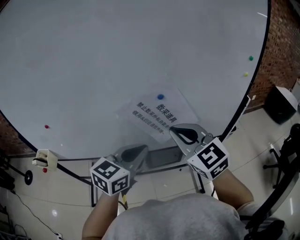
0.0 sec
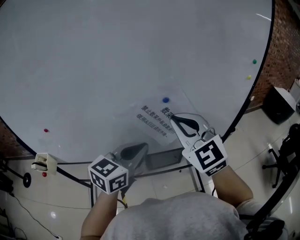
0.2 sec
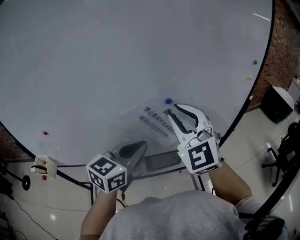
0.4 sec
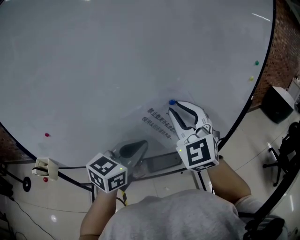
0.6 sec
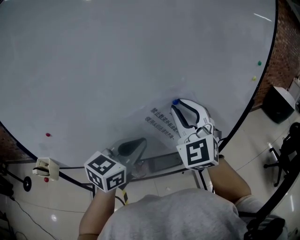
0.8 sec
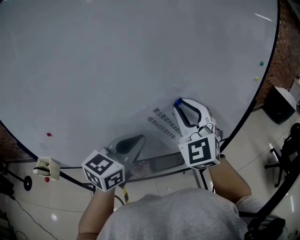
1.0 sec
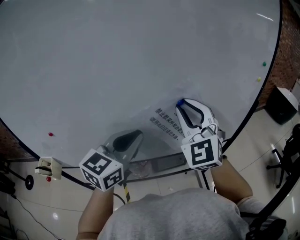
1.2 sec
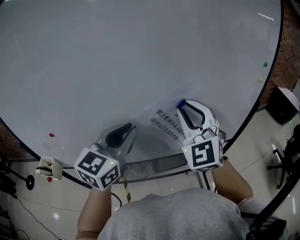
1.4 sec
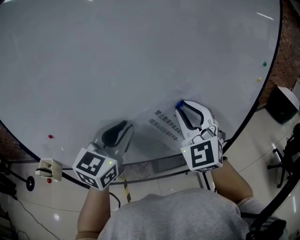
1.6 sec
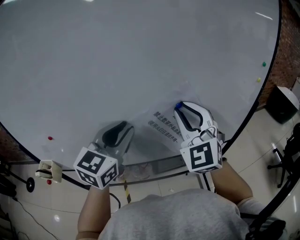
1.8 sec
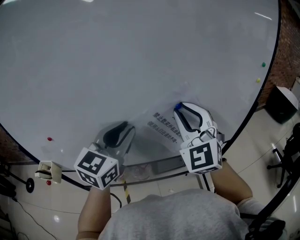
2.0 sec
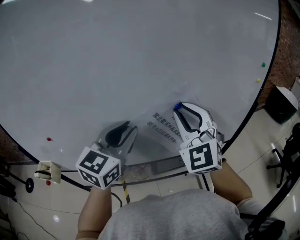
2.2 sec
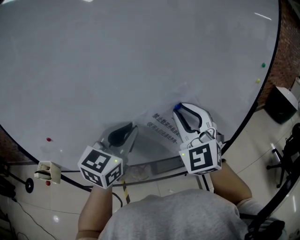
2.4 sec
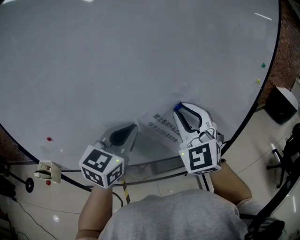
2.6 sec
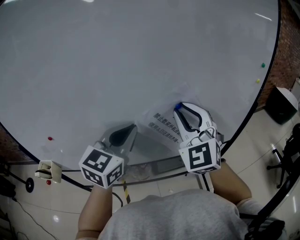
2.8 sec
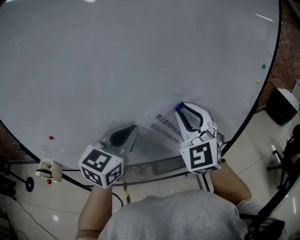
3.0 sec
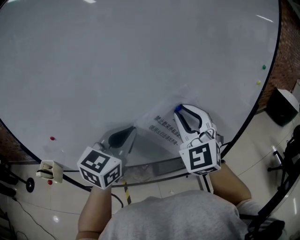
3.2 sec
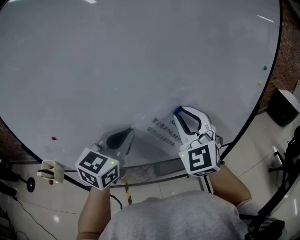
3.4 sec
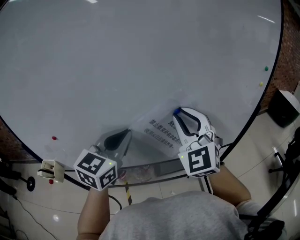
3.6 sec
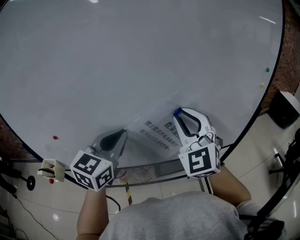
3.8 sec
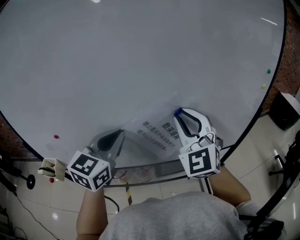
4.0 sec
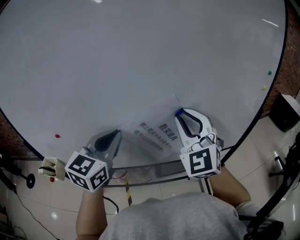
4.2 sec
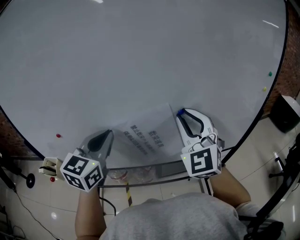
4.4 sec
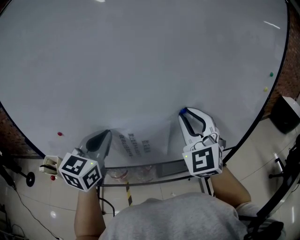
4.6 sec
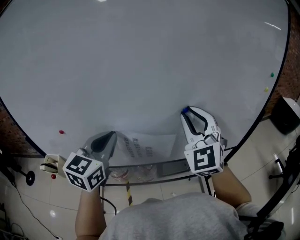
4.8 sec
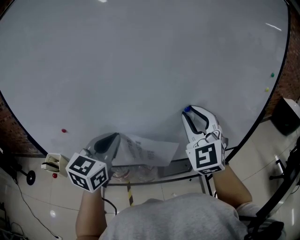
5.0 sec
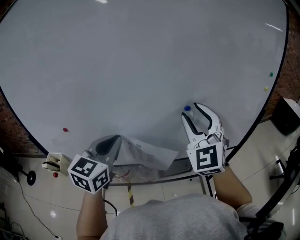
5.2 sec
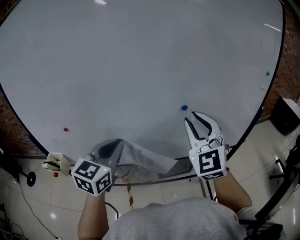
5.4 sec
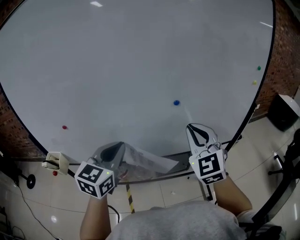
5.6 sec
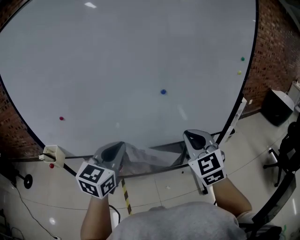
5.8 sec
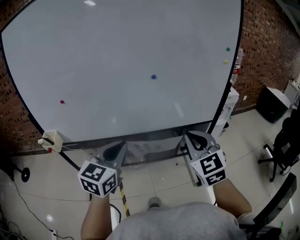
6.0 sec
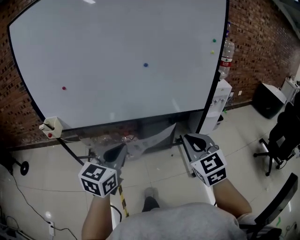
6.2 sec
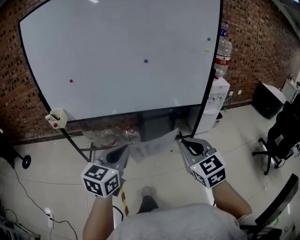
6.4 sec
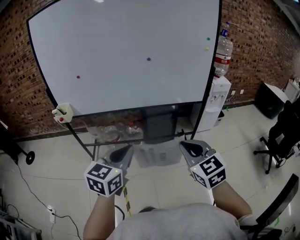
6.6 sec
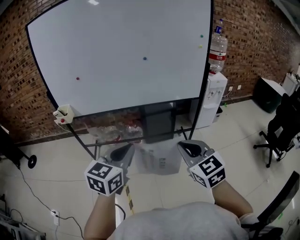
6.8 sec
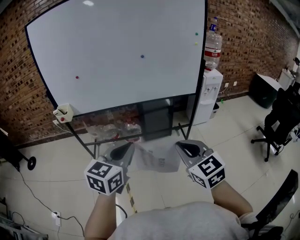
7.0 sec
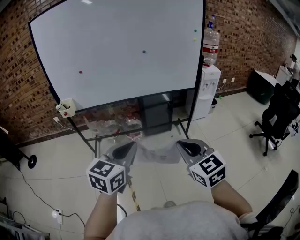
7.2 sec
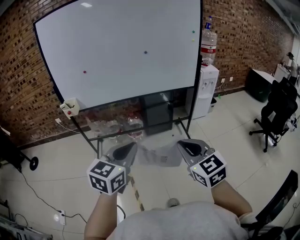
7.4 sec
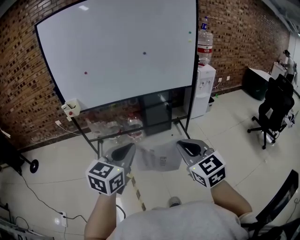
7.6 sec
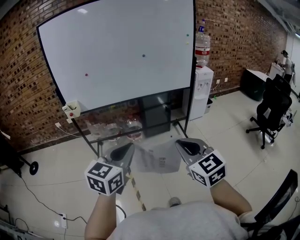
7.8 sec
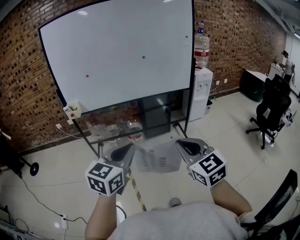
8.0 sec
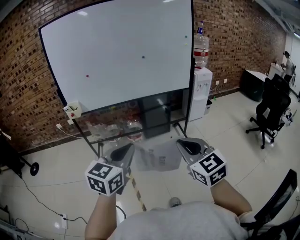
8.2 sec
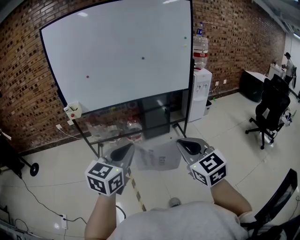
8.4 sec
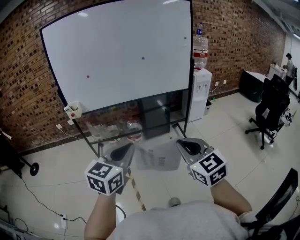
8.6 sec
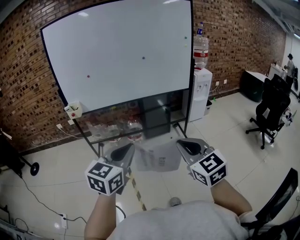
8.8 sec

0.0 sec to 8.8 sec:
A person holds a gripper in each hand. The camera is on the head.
0.0 sec to 1.4 sec: The left gripper is displaced to the left and upward by roughly 15 cm. Meanwhile the right gripper moves forward and upward, approximately 10 cm, and changes its angle by some 40 degrees.
1.4 sec to 3.0 sec: The grippers stay close to where they were, moving slightly.
3.0 sec to 4.4 sec: The left gripper moves to the left, about 10 cm.
4.4 sec to 5.8 sec: The right gripper shifts approximately 15 cm backward, downward and to the right, swivels roughly 20 degrees, and opens, then closes once more, while the left gripper is displaced backward and to the right by some 15 cm.
5.8 sec to 7.4 sec: Both grippers are carried backward, roughly 50 cm.
7.4 sec to 8.8 sec: The grippers both shift backward by approximately 5 cm.

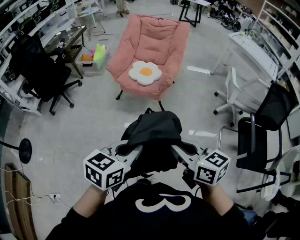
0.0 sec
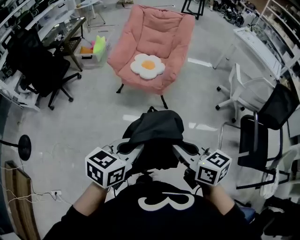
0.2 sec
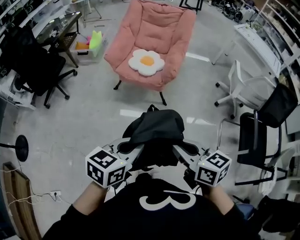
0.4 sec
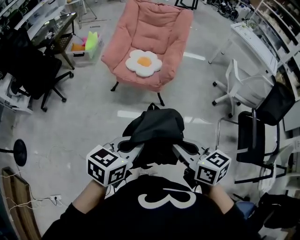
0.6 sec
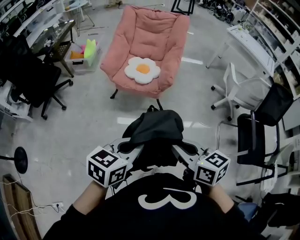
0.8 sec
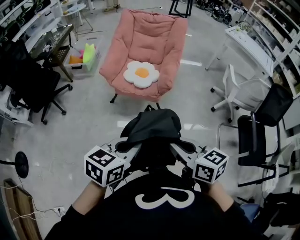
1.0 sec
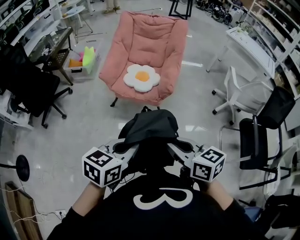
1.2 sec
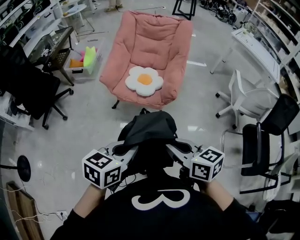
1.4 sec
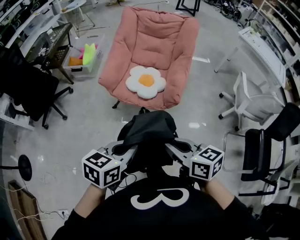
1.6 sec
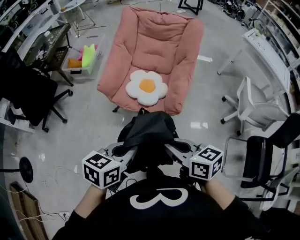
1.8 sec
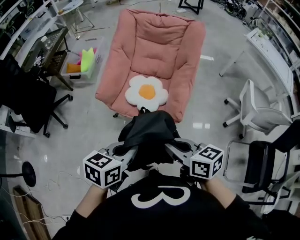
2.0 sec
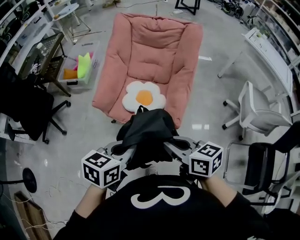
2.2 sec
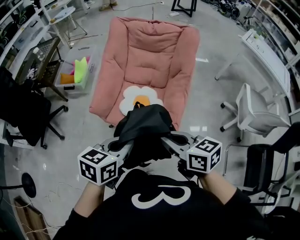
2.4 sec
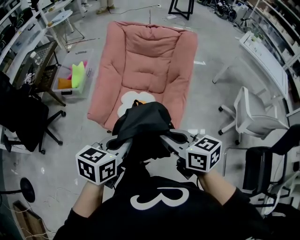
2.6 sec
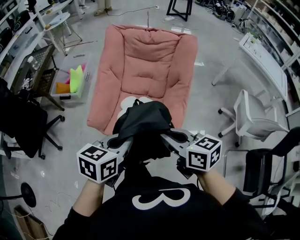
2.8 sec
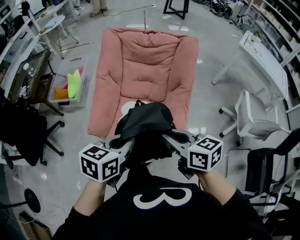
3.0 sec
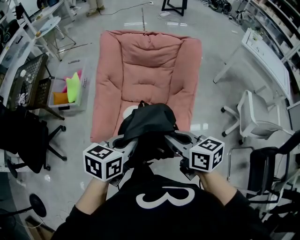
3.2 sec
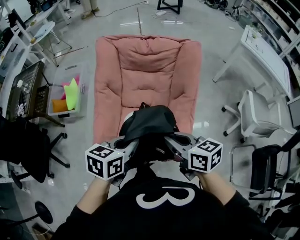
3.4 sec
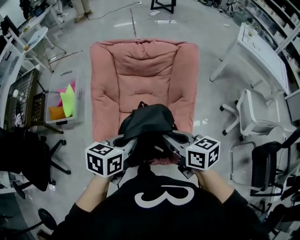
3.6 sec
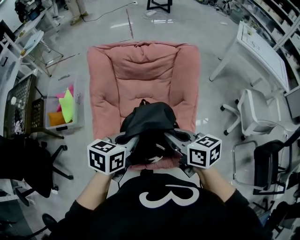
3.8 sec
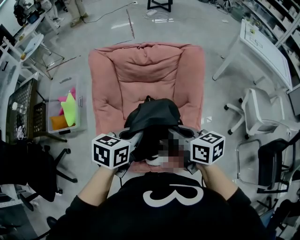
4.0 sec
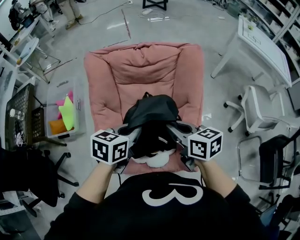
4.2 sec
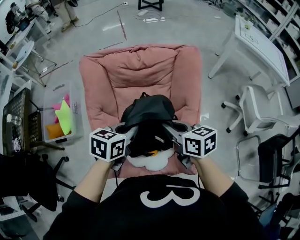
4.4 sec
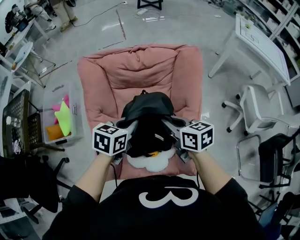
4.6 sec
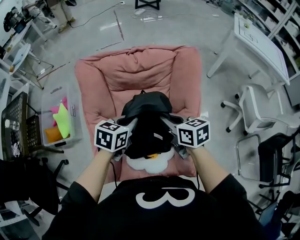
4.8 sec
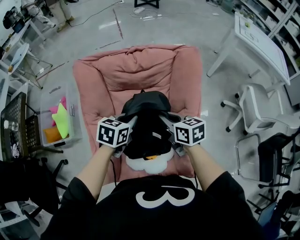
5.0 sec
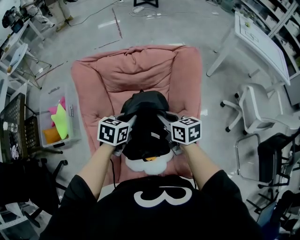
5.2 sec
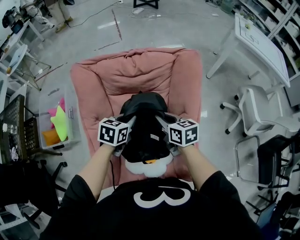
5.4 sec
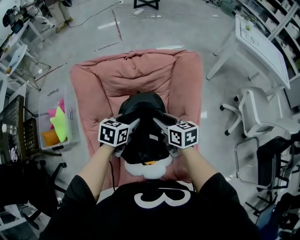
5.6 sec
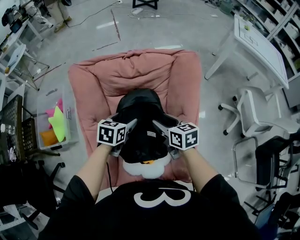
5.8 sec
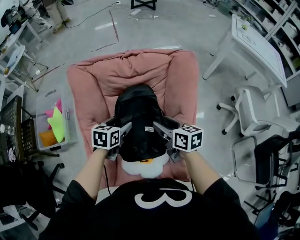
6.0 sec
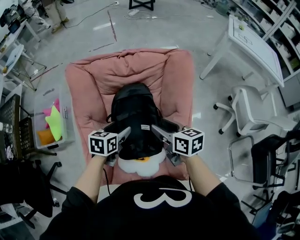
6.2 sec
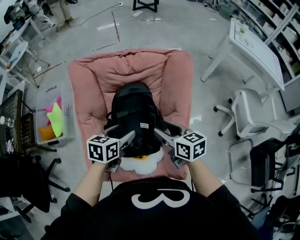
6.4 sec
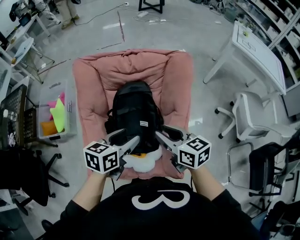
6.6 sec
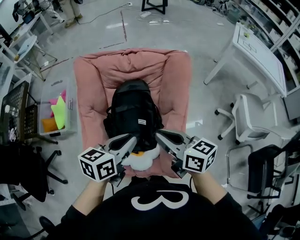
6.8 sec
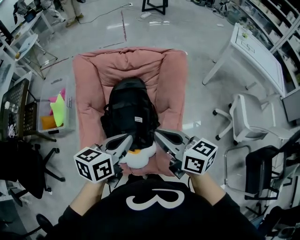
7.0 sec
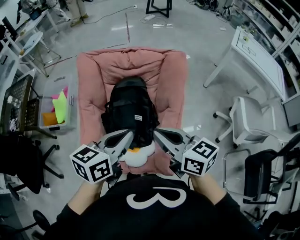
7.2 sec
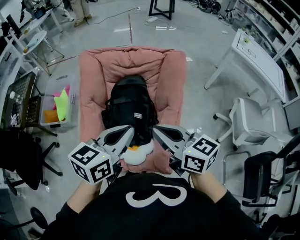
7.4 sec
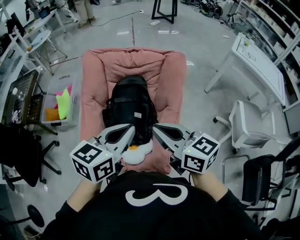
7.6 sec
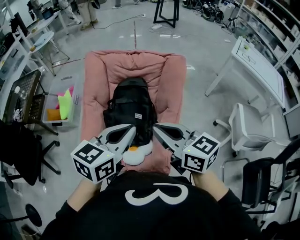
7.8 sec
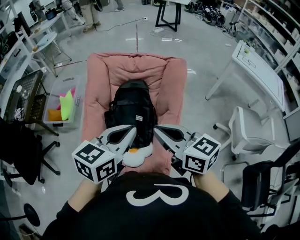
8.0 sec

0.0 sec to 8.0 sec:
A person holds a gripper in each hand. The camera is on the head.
0.0 sec to 1.6 sec: Both grippers move forward, some 30 cm.
1.6 sec to 3.2 sec: Both grippers are carried forward, approximately 40 cm.
3.2 sec to 4.8 sec: The two grippers go approximately 30 cm forward.
4.8 sec to 6.4 sec: The right gripper opens its fingers, while the left gripper opens up.
6.4 sec to 8.0 sec: The right gripper is displaced upward and backward by some 25 cm, rotates approximately 30 degrees, and closes up; the left gripper heads upward, backward and to the right, covering about 30 cm, turns by approximately 20 degrees, and closes.

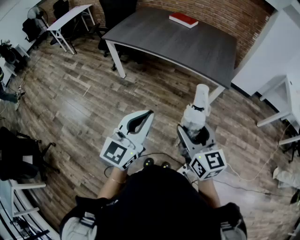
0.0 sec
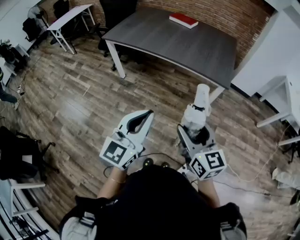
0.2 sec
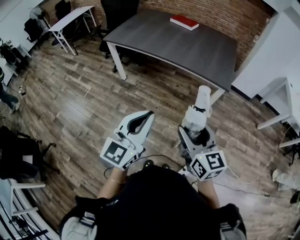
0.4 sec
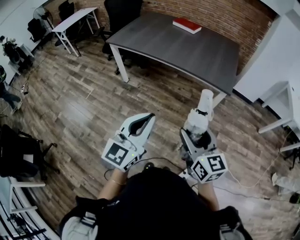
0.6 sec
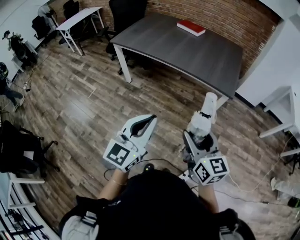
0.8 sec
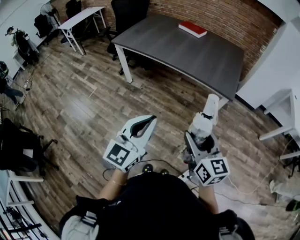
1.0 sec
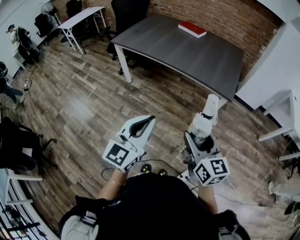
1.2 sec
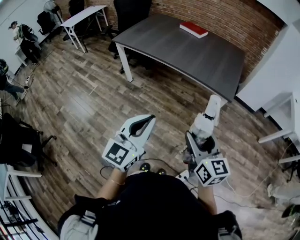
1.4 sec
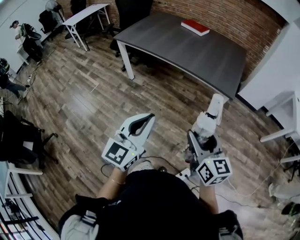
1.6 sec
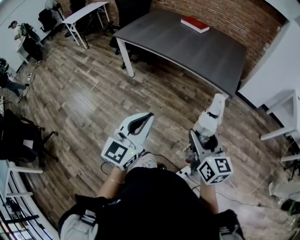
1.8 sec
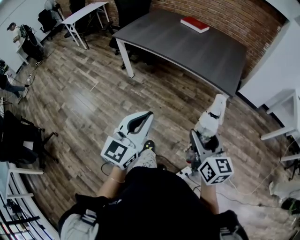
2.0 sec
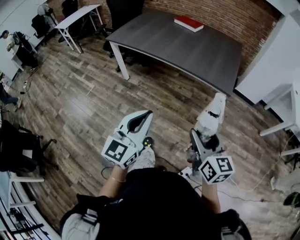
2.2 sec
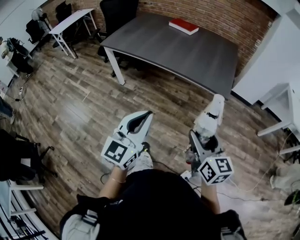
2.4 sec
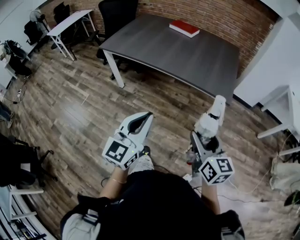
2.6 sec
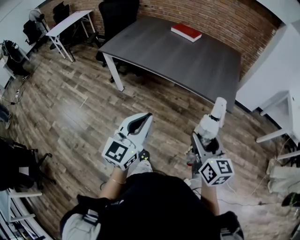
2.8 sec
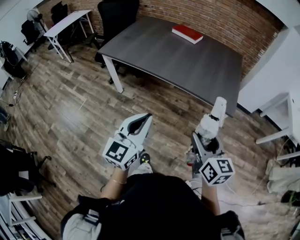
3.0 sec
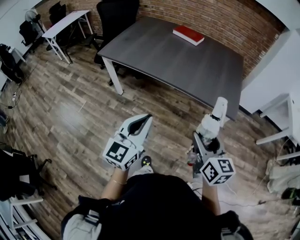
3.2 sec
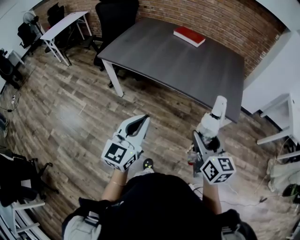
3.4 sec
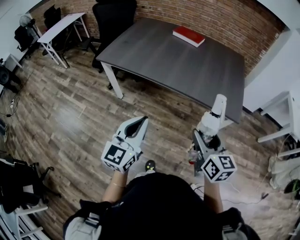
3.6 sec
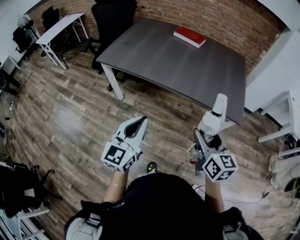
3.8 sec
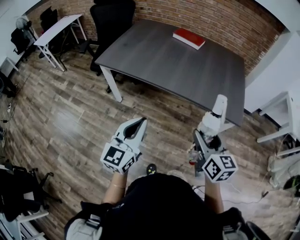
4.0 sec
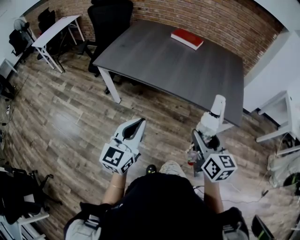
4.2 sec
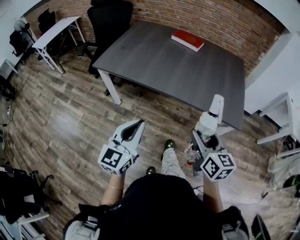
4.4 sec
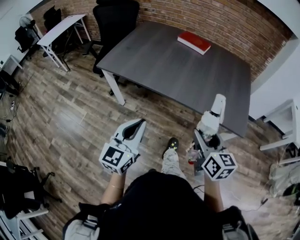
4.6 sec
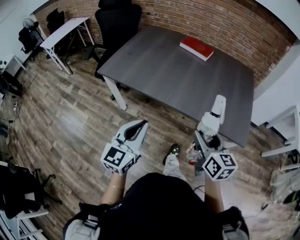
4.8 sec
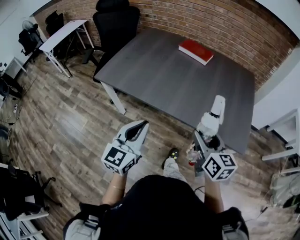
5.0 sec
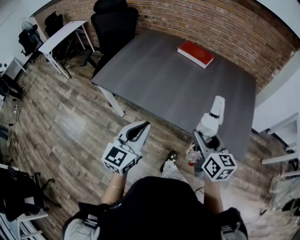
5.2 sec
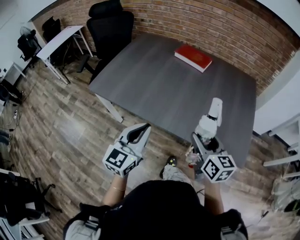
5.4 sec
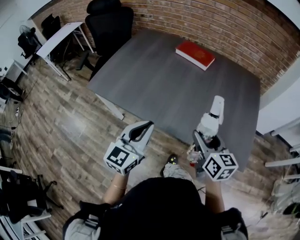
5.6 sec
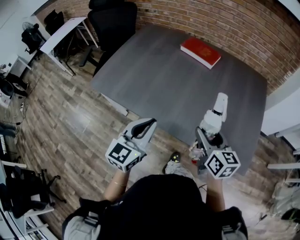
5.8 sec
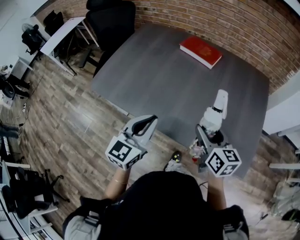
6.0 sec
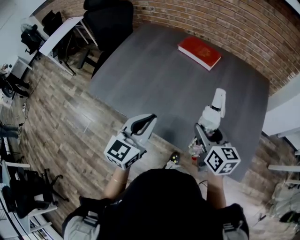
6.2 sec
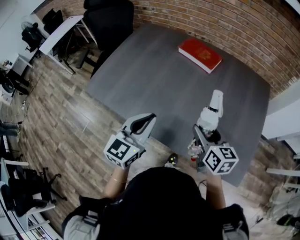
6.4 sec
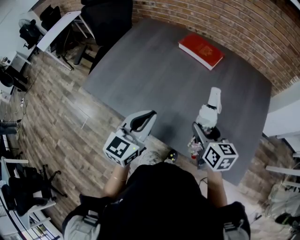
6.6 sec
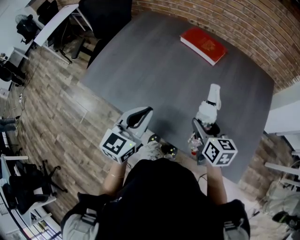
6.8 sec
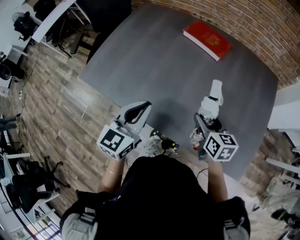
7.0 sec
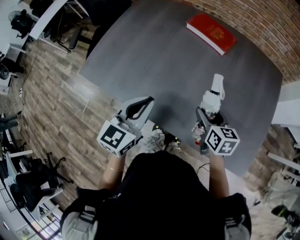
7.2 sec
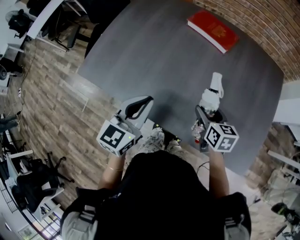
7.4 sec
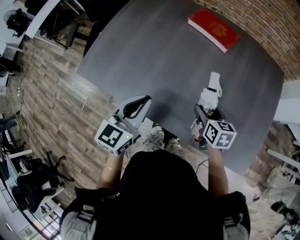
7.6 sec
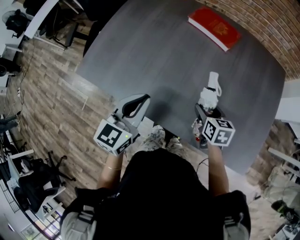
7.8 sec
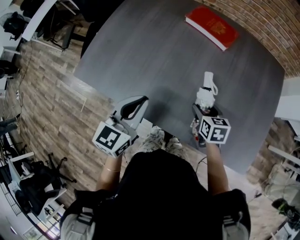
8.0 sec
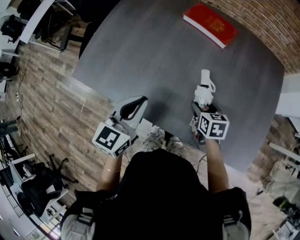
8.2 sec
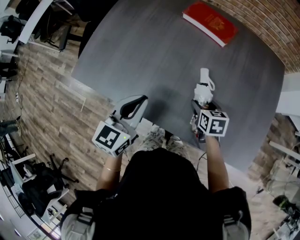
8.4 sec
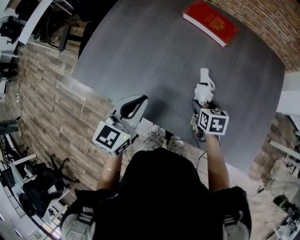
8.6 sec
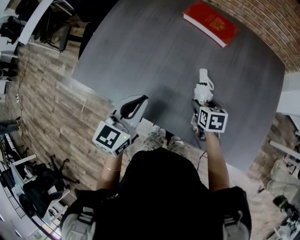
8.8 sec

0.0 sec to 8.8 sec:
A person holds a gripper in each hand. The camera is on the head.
0.0 sec to 1.4 sec: The right gripper goes some 5 cm to the right.
1.4 sec to 3.0 sec: The grippers both shift forward by approximately 20 cm.
3.0 sec to 4.4 sec: The left gripper heads to the left and forward, covering roughly 15 cm; the right gripper shifts roughly 15 cm forward and to the left.
4.4 sec to 5.8 sec: Both grippers move forward, about 30 cm.
5.8 sec to 7.4 sec: The left gripper moves forward, about 15 cm; the right gripper goes some 20 cm forward and downward, and swivels about 20 degrees.
7.4 sec to 8.8 sec: The right gripper shifts some 10 cm downward.
